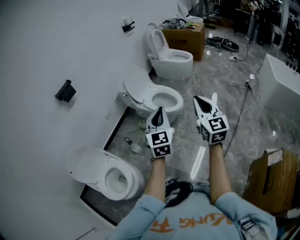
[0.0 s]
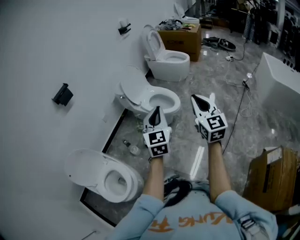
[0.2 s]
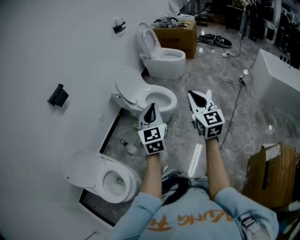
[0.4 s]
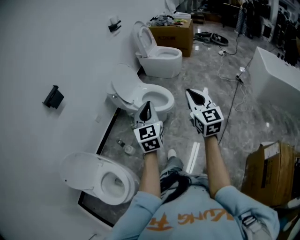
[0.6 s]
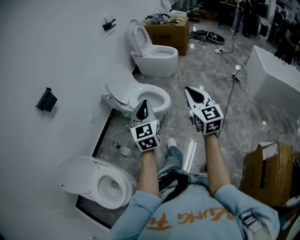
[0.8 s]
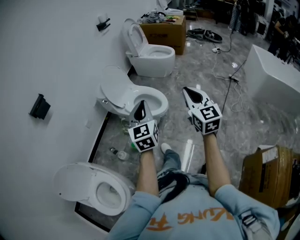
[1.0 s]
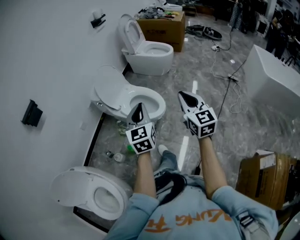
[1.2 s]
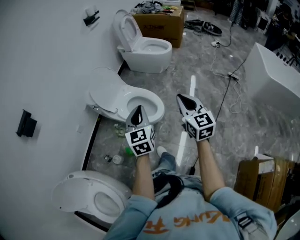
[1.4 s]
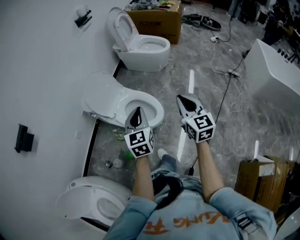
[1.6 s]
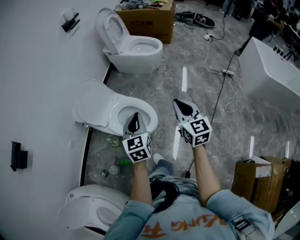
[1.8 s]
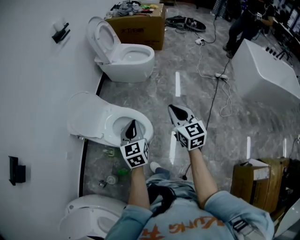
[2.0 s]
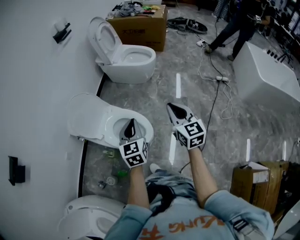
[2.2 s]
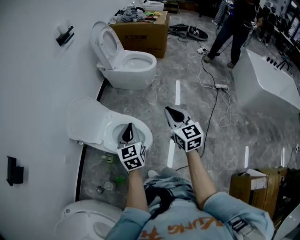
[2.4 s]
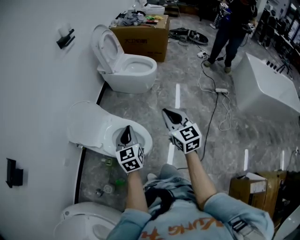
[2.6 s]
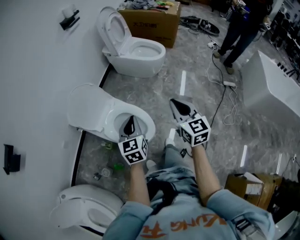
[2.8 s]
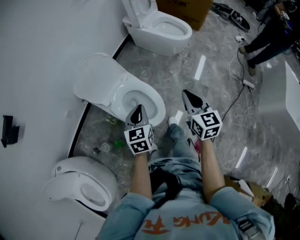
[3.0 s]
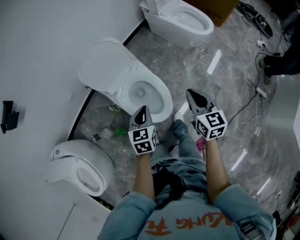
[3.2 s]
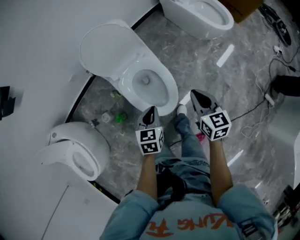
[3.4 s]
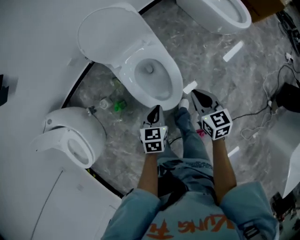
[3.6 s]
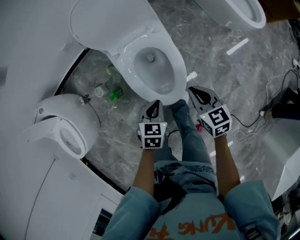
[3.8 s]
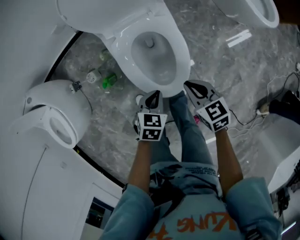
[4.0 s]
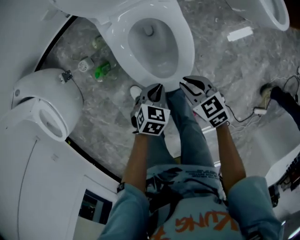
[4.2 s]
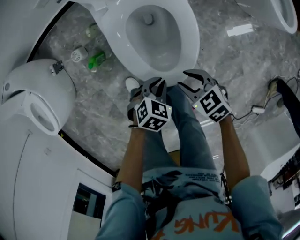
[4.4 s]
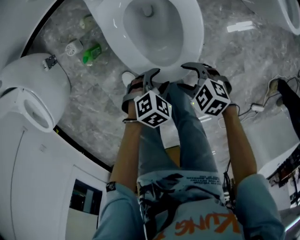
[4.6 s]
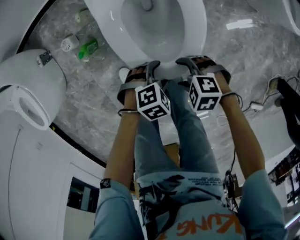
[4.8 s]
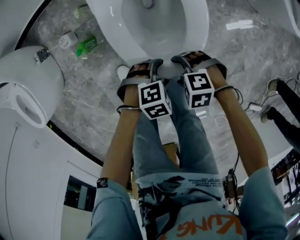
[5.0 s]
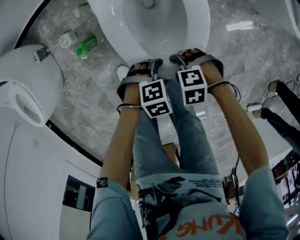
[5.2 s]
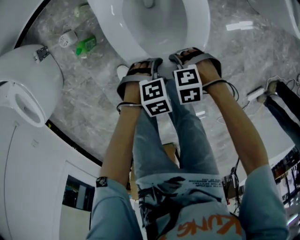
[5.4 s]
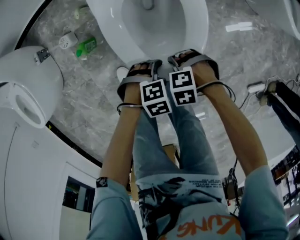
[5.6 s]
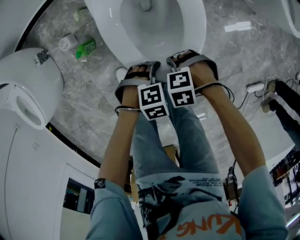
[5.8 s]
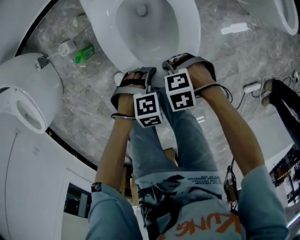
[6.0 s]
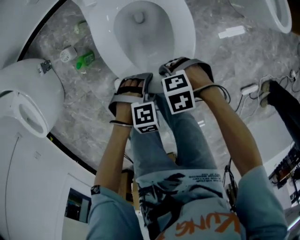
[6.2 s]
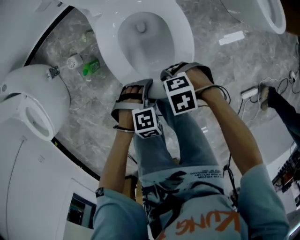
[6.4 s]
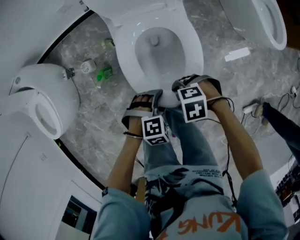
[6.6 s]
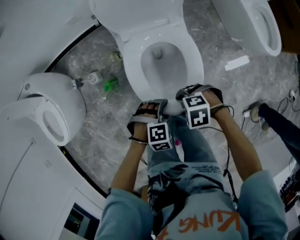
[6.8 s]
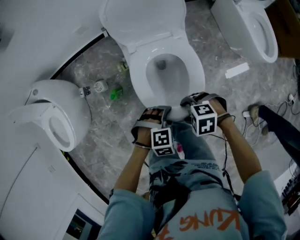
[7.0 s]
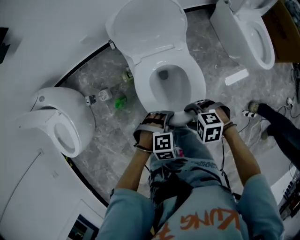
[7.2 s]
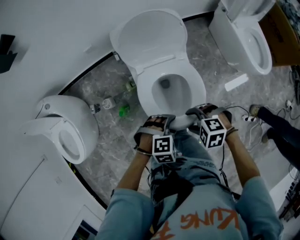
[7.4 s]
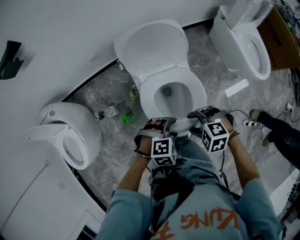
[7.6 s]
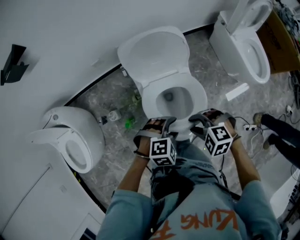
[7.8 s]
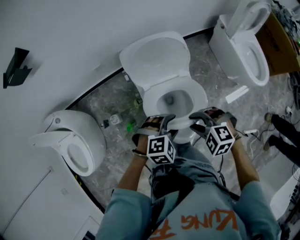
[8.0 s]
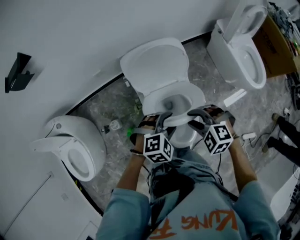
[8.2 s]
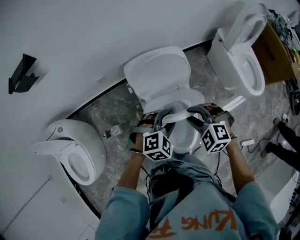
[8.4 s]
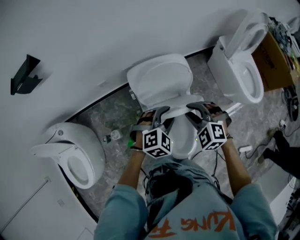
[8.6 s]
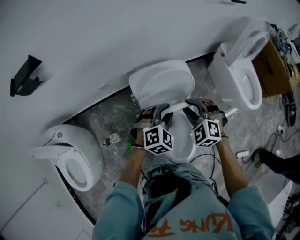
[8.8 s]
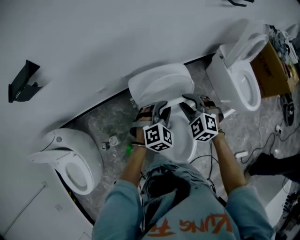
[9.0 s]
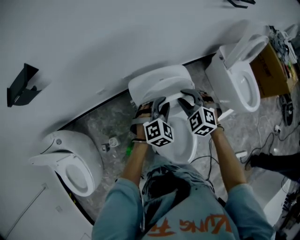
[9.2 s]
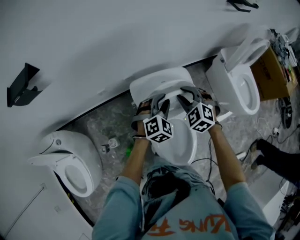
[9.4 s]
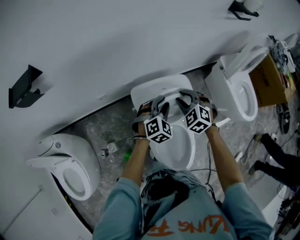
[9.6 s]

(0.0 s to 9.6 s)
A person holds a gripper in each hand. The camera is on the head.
0.0 s - 1.6 s: Both grippers travel together forward, some 35 cm.
1.6 s - 3.2 s: The left gripper shifts roughly 25 cm downward and forward, and changes its angle by some 30 degrees; the right gripper shifts roughly 30 cm forward and downward, and turns by roughly 30 degrees.
3.2 s - 4.8 s: Both grippers travel together downward, about 40 cm. The right gripper tips its fingers downward by roughly 40 degrees, and opens. Meanwhile the left gripper tips its fingers downward by roughly 30 degrees, and opens.
4.8 s - 6.4 s: The grippers both shift upward by about 5 cm. The right gripper swivels about 20 degrees; the left gripper turns by approximately 20 degrees.
6.4 s - 8.0 s: Both grippers travel together upward, roughly 30 cm. The right gripper swivels approximately 40 degrees, and closes its fingers.
8.0 s - 9.6 s: The right gripper shifts by approximately 35 cm, and turns by about 30 degrees. Meanwhile the left gripper moves roughly 30 cm, changes its angle by roughly 30 degrees, and closes its fingers.

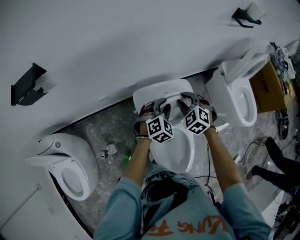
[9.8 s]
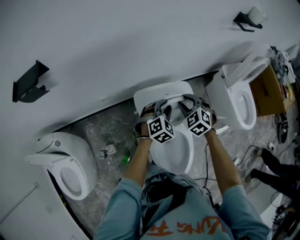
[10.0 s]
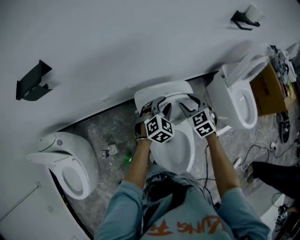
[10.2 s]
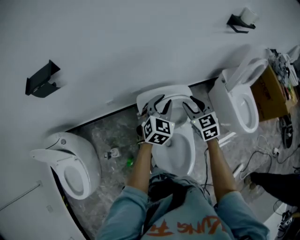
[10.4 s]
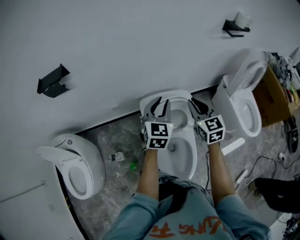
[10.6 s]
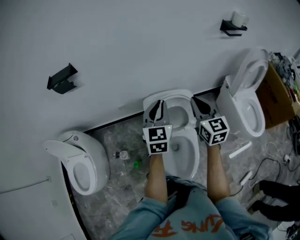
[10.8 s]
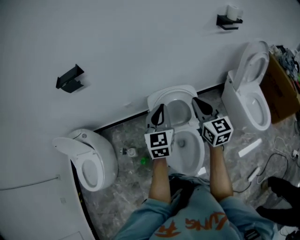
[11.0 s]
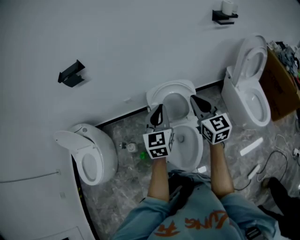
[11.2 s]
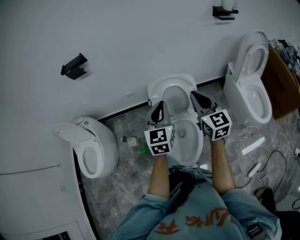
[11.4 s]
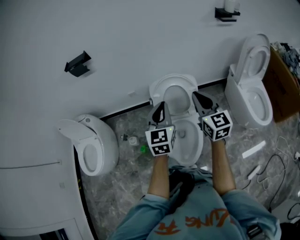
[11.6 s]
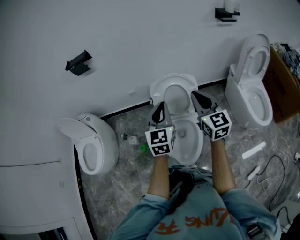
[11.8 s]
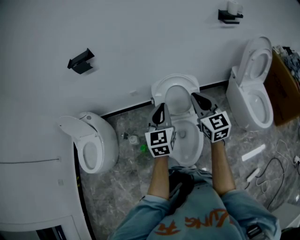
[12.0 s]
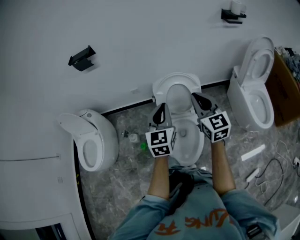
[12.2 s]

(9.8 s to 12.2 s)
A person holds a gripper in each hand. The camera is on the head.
9.8 s - 11.0 s: Both grippers travel together upward and backward, some 30 cm. The left gripper changes its angle by about 50 degrees, and closes. The right gripper points its fingers roughly 40 degrees further upward.
11.0 s - 12.2 s: Both grippers travel together backward, roughly 10 cm.

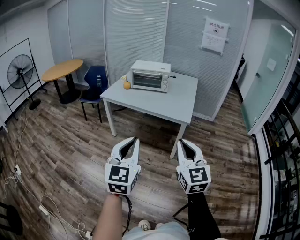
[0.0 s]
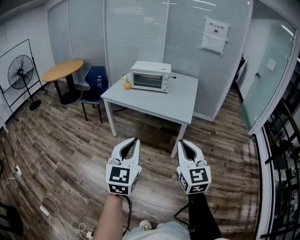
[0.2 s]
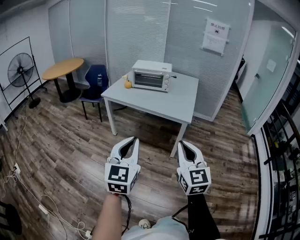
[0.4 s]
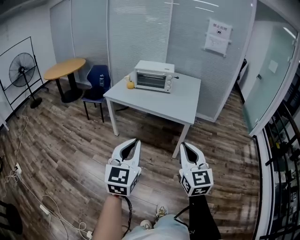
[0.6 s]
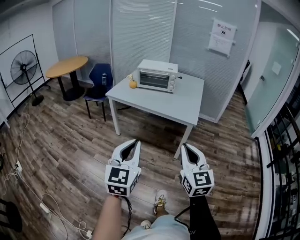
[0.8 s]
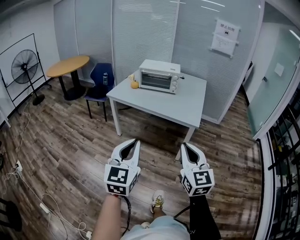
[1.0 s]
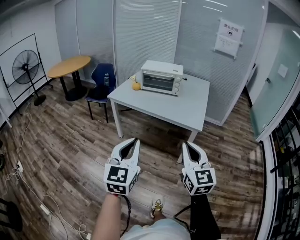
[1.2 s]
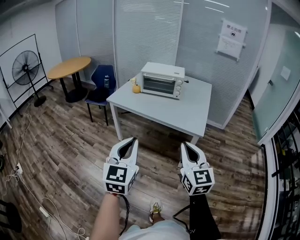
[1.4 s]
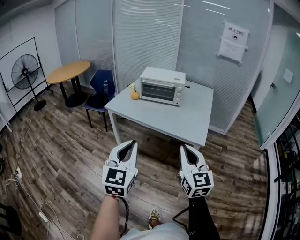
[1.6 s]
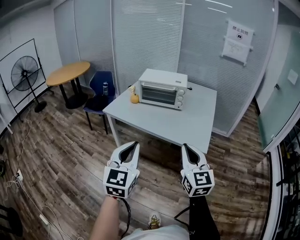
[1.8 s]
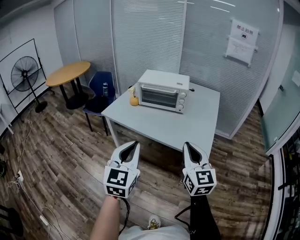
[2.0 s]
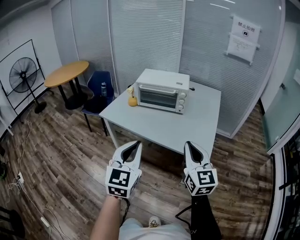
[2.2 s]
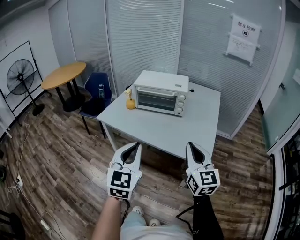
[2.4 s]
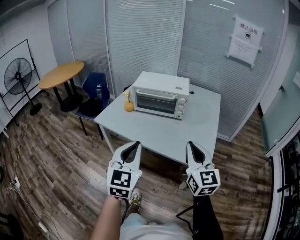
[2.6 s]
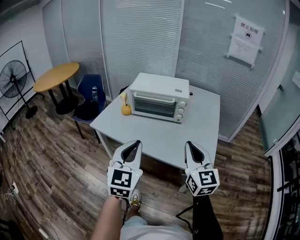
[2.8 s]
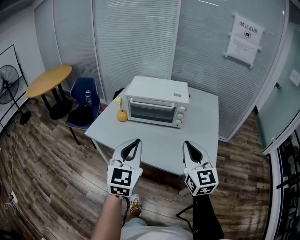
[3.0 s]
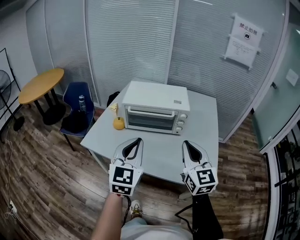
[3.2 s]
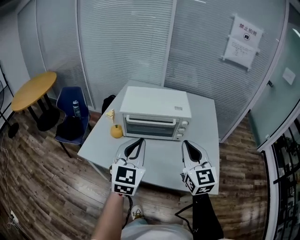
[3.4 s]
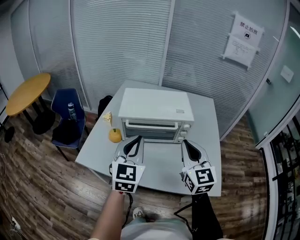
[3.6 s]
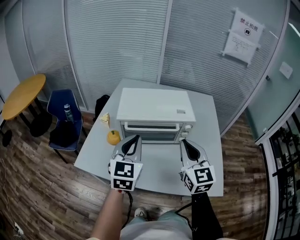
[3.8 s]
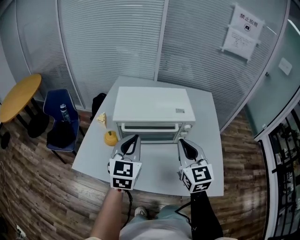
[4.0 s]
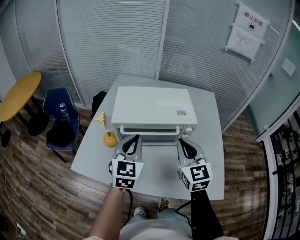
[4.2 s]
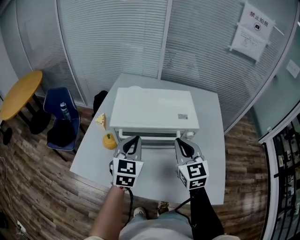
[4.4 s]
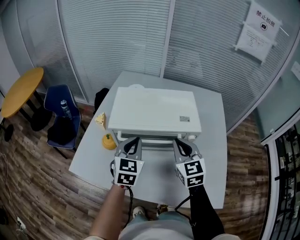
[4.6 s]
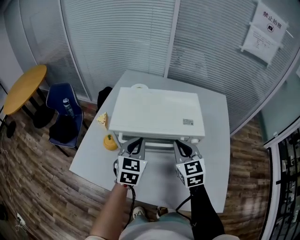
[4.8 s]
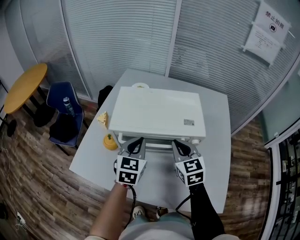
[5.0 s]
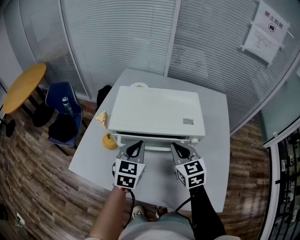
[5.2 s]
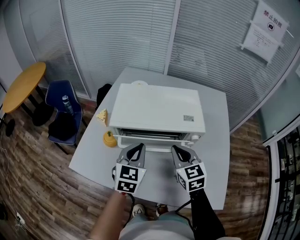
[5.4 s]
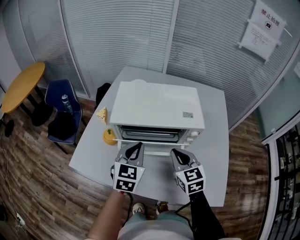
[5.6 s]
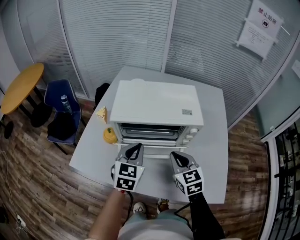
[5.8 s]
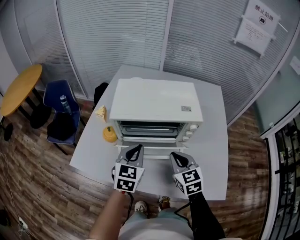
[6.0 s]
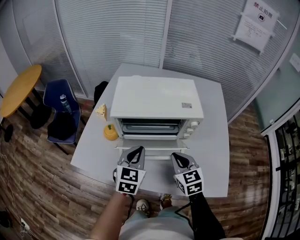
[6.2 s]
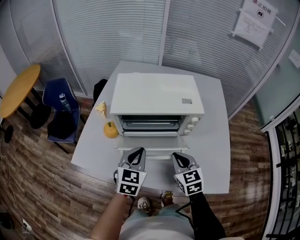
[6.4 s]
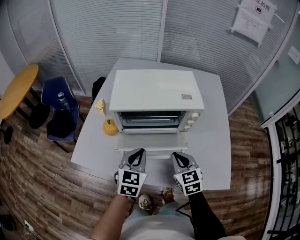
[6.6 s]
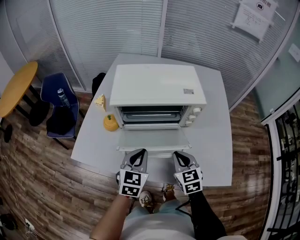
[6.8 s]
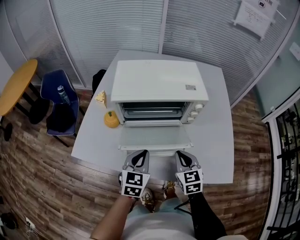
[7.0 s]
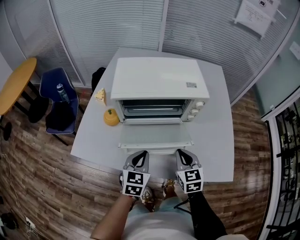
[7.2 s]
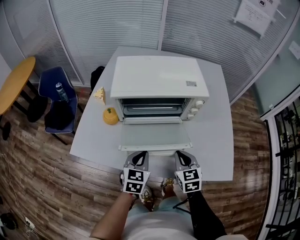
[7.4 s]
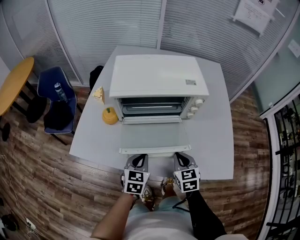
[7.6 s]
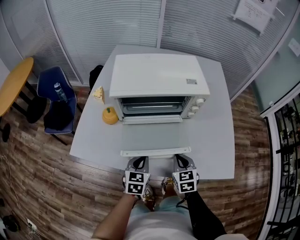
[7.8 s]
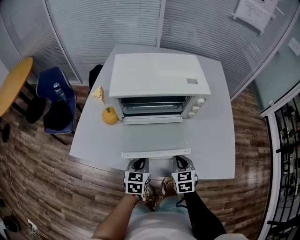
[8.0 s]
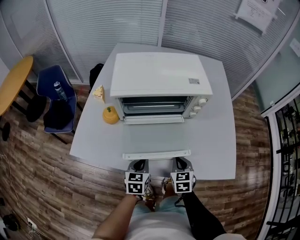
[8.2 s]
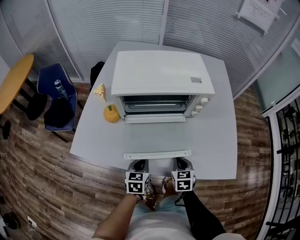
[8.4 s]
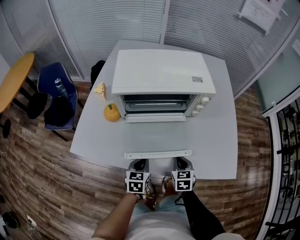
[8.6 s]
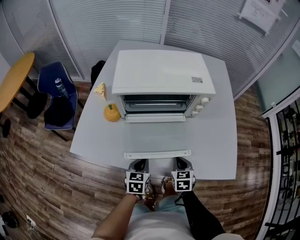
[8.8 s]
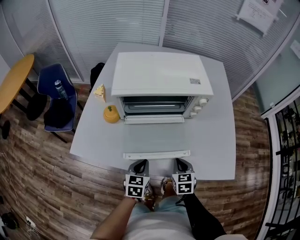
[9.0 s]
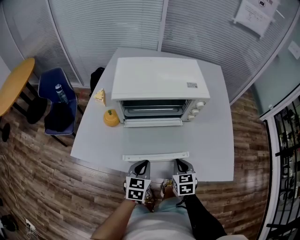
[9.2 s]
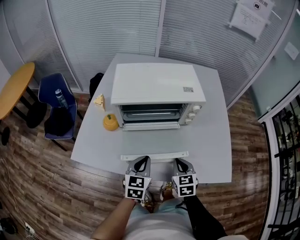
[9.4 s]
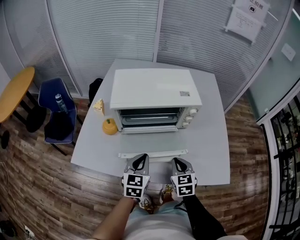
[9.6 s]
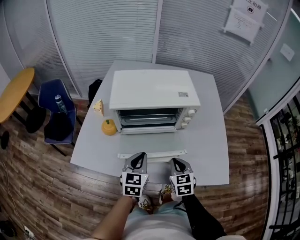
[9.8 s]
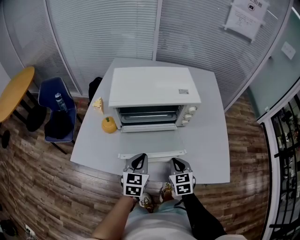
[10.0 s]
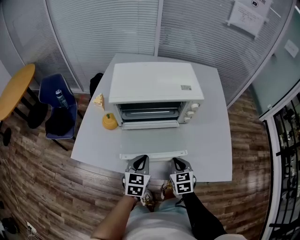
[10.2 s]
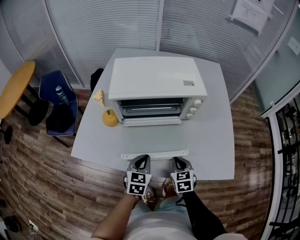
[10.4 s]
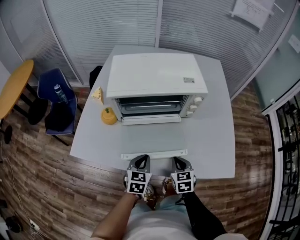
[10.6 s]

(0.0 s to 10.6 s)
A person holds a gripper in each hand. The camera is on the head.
0.0 s - 1.6 s: Both grippers move forward, about 20 cm.
1.6 s - 3.0 s: Both grippers travel together forward, approximately 35 cm.
3.0 s - 4.6 s: Both grippers move forward, some 30 cm.
4.6 s - 6.0 s: The right gripper travels downward and backward by about 10 cm, while the left gripper heads backward, covering roughly 5 cm.
6.0 s - 7.6 s: Both grippers travel together downward and backward, about 15 cm.
7.6 s - 9.0 s: Both grippers move downward, some 5 cm.
9.0 s - 10.6 s: The right gripper moves roughly 10 cm upward and comes back. The left gripper travels upward and back again, approximately 10 cm each way.

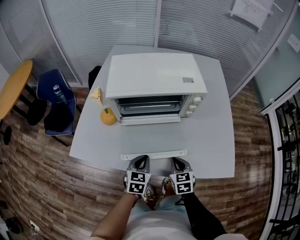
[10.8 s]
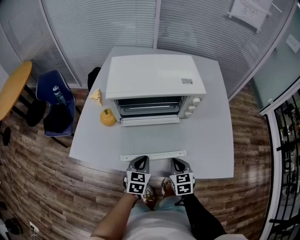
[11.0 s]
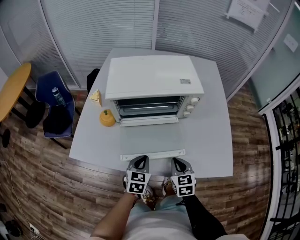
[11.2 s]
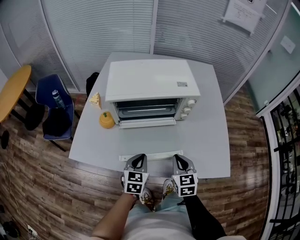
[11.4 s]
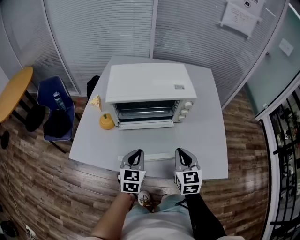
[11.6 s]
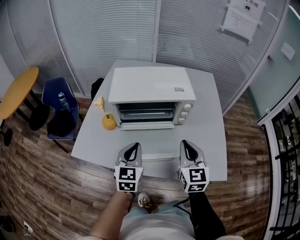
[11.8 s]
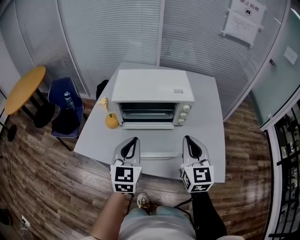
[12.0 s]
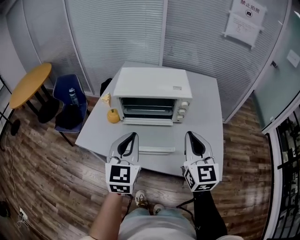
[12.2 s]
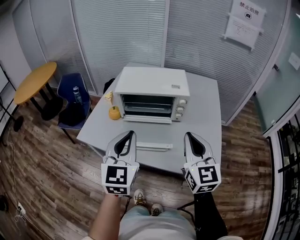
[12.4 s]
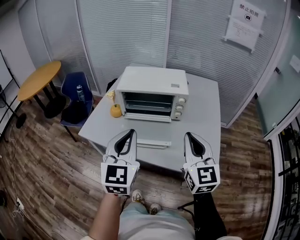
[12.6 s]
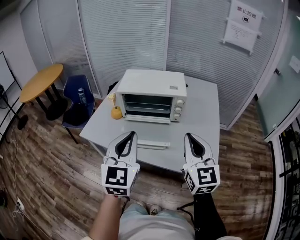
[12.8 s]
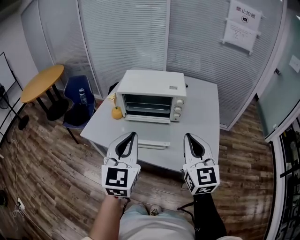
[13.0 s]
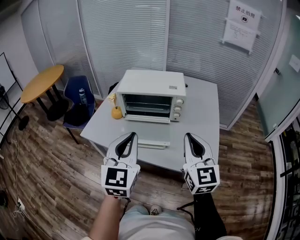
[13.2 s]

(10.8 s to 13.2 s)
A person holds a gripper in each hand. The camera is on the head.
10.8 s - 12.0 s: The grippers both shift upward by approximately 25 cm. The left gripper swivels about 30 degrees; the right gripper points its fingers about 40 degrees further upward.
12.0 s - 13.2 s: The two grippers go roughly 15 cm backward and upward.
